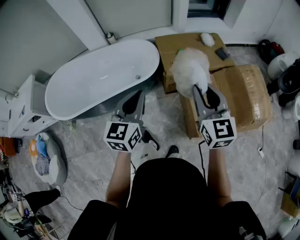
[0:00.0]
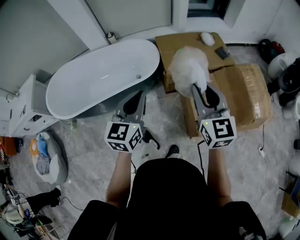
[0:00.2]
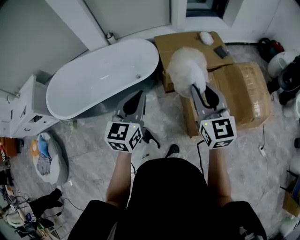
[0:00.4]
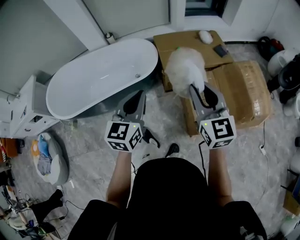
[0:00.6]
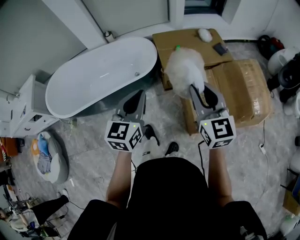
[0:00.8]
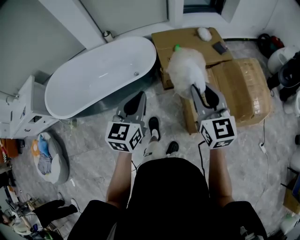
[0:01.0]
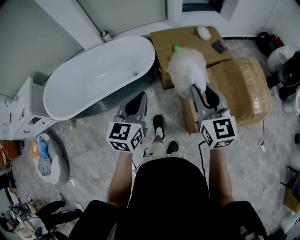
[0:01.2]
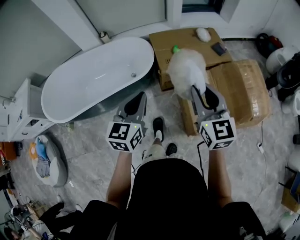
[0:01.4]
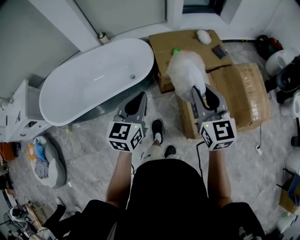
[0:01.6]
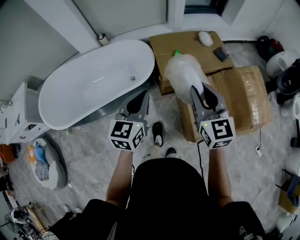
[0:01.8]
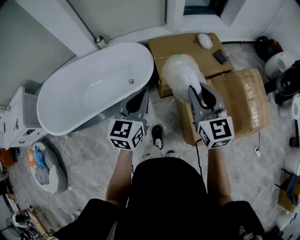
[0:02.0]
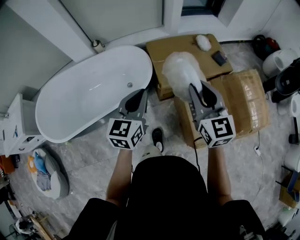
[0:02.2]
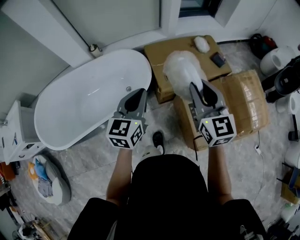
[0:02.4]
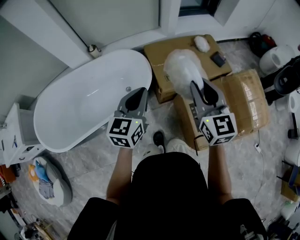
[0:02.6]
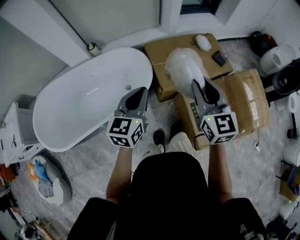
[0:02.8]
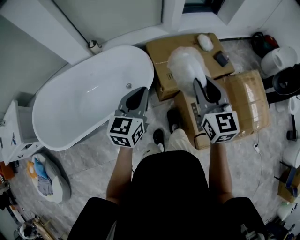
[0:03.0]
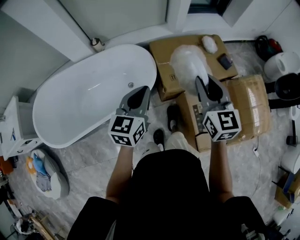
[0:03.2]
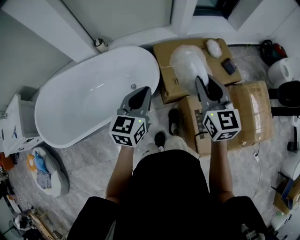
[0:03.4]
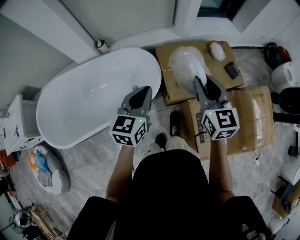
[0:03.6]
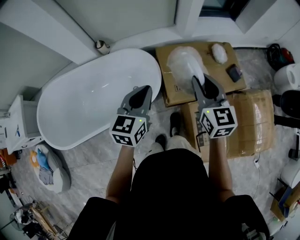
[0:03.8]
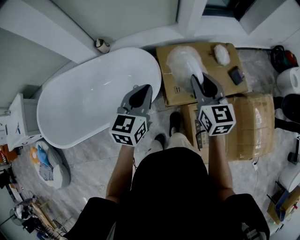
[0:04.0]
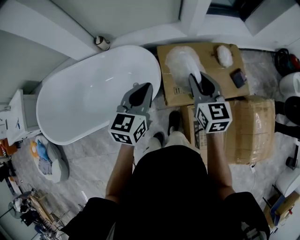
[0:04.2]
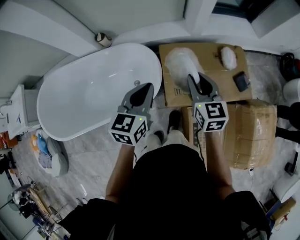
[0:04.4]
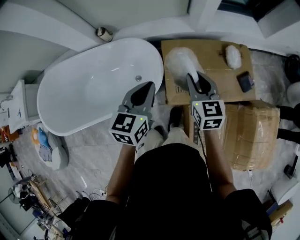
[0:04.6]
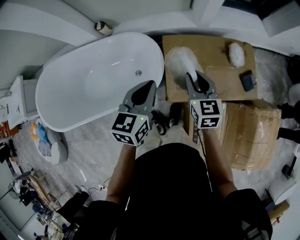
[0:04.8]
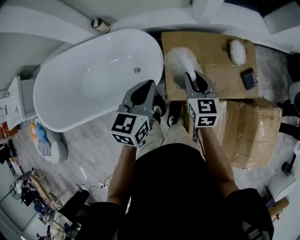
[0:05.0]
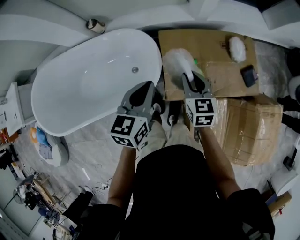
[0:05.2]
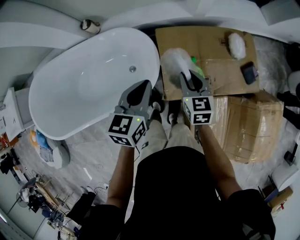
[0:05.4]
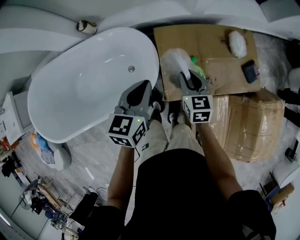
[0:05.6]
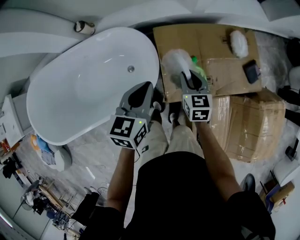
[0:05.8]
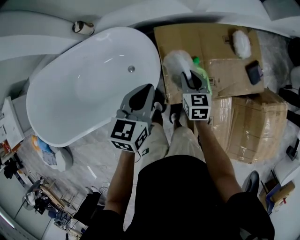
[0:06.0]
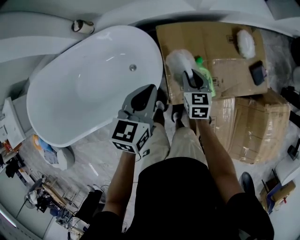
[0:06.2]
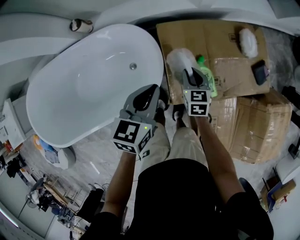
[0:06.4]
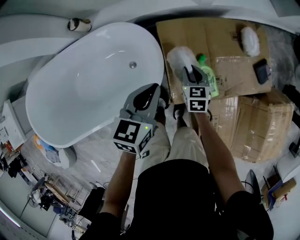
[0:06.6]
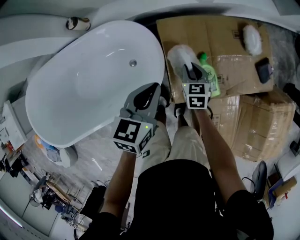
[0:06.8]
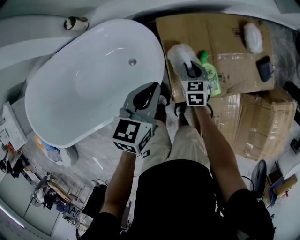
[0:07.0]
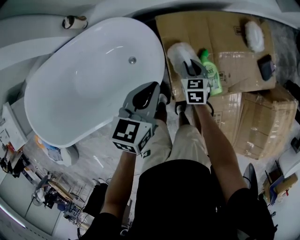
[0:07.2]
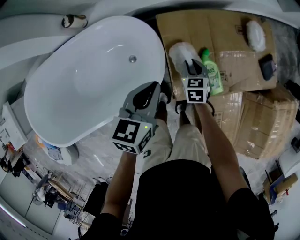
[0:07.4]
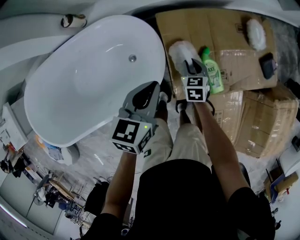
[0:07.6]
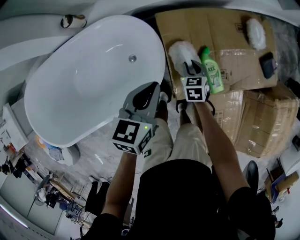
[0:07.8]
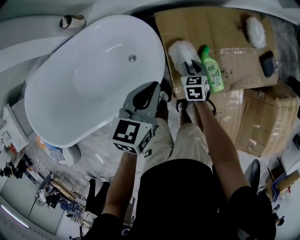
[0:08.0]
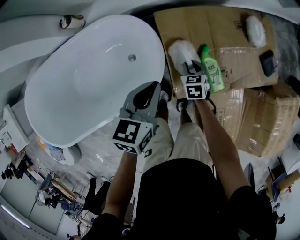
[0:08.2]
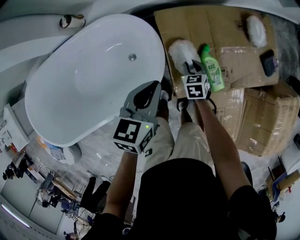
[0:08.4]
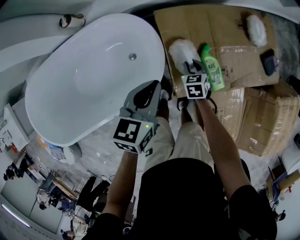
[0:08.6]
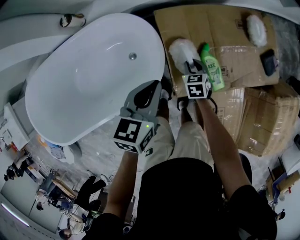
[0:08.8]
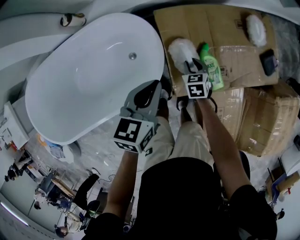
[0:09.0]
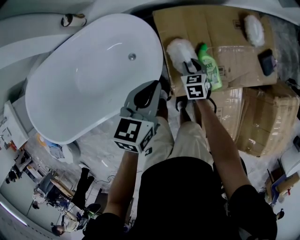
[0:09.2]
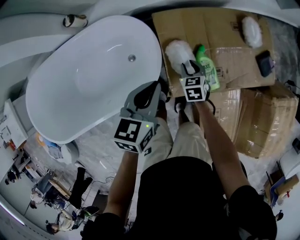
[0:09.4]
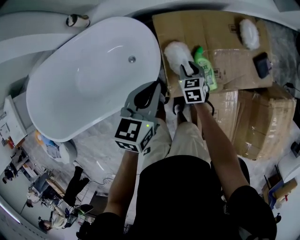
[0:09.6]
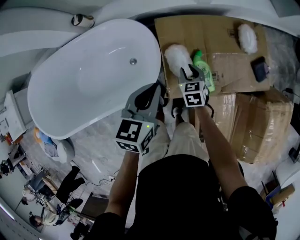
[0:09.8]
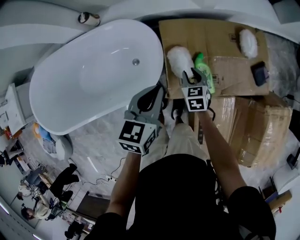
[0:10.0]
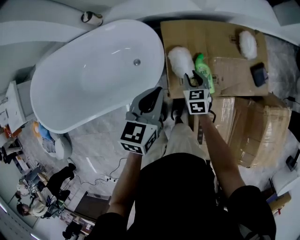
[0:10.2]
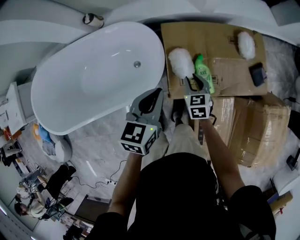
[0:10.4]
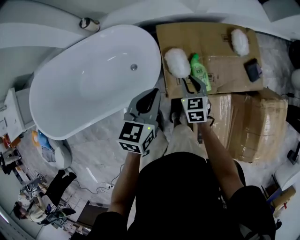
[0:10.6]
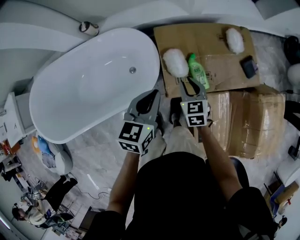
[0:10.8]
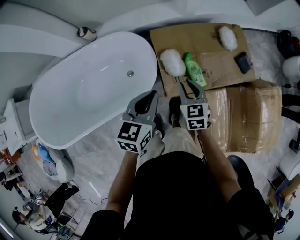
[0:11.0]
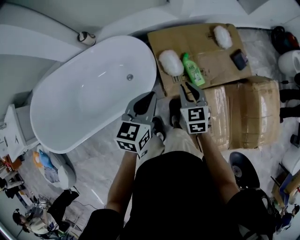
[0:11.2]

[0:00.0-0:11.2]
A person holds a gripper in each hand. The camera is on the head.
0:00.0 to 0:01.6: Both grippers travel together forward, approximately 5 cm.
0:01.6 to 0:03.2: The grippers both shift forward by approximately 20 cm.
0:03.2 to 0:04.8: The right gripper moves forward and downward, some 30 cm, and swivels some 20 degrees. The left gripper shifts approximately 20 cm forward.
0:04.8 to 0:06.4: The right gripper heads downward, covering approximately 25 cm. Meanwhile the left gripper goes some 15 cm downward and forward.
0:06.4 to 0:08.0: The right gripper goes about 10 cm downward.
0:08.0 to 0:09.6: The left gripper moves about 5 cm.
0:09.6 to 0:11.2: The right gripper heads upward and backward, covering some 25 cm. Meanwhile the left gripper goes about 15 cm backward and upward.

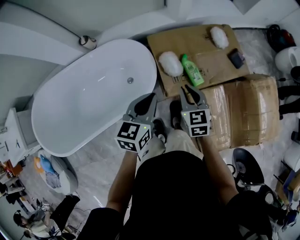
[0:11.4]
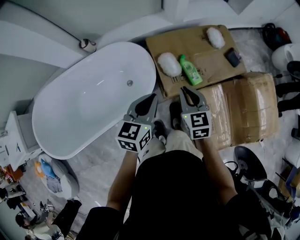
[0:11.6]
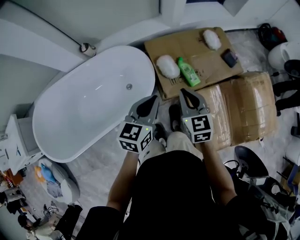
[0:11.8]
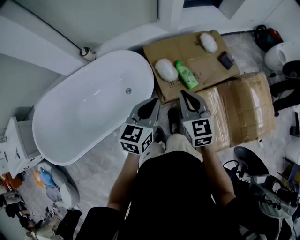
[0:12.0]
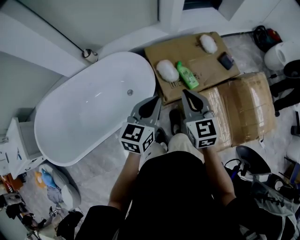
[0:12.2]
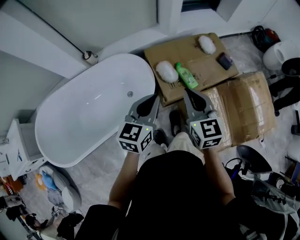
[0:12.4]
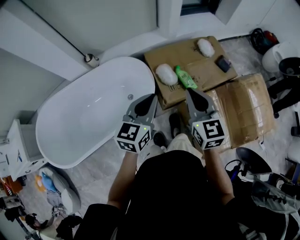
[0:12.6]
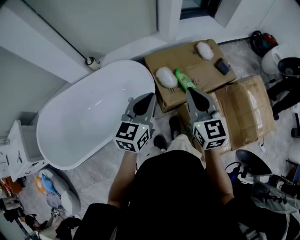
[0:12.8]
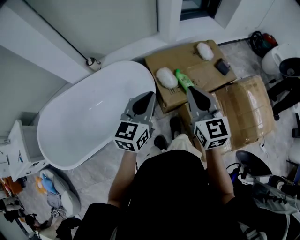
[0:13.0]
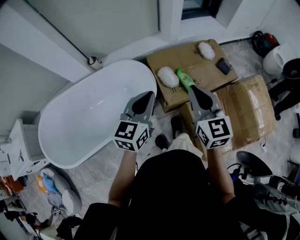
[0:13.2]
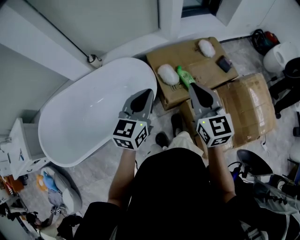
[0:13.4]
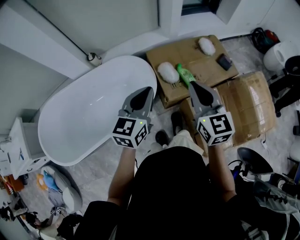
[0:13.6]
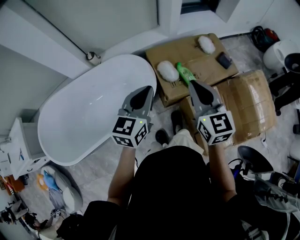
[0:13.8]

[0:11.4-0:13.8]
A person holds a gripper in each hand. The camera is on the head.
0:11.4 to 0:12.6: The left gripper heads upward and backward, covering about 10 cm; the right gripper is displaced upward and backward by roughly 20 cm.
0:12.6 to 0:13.8: There are only small adjustments of the grippers.

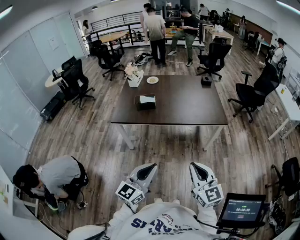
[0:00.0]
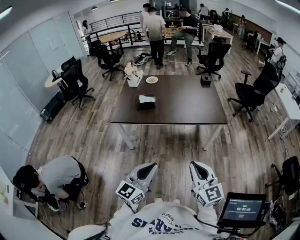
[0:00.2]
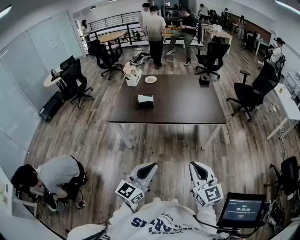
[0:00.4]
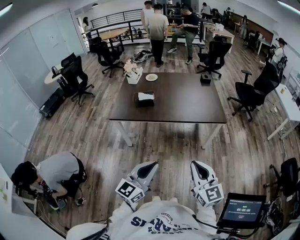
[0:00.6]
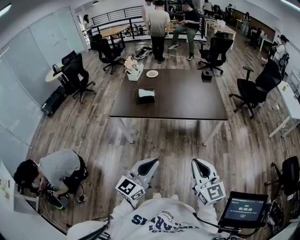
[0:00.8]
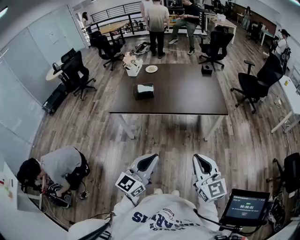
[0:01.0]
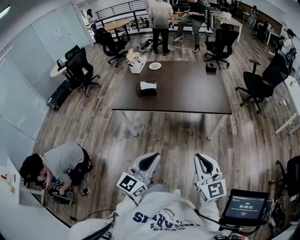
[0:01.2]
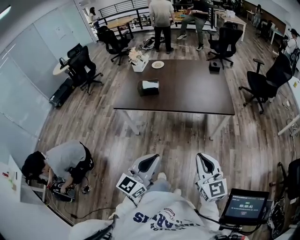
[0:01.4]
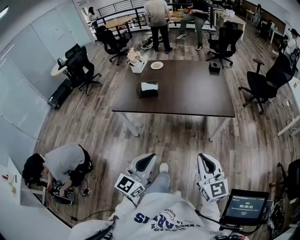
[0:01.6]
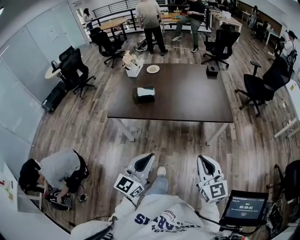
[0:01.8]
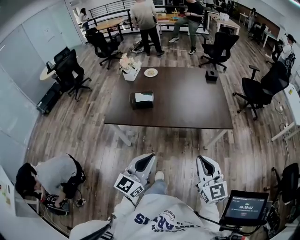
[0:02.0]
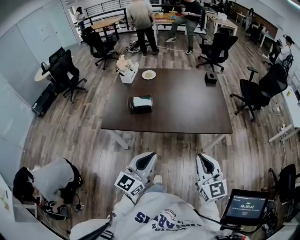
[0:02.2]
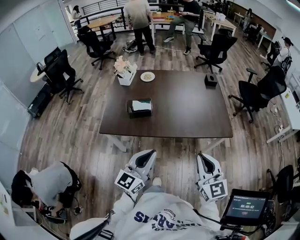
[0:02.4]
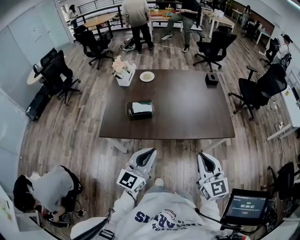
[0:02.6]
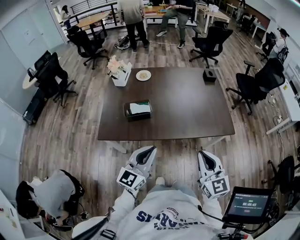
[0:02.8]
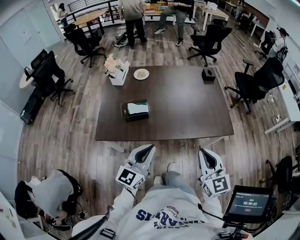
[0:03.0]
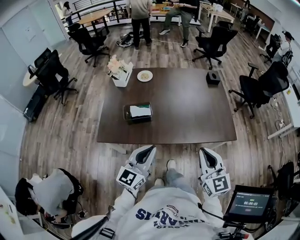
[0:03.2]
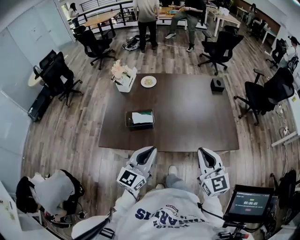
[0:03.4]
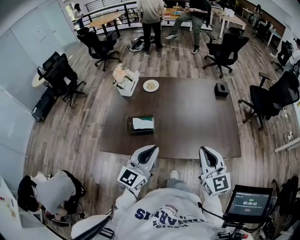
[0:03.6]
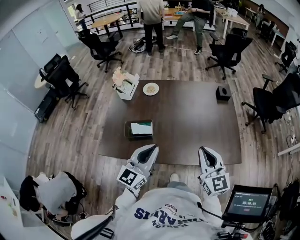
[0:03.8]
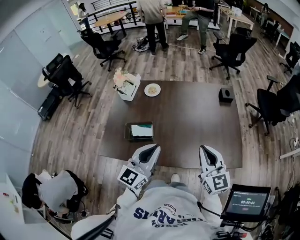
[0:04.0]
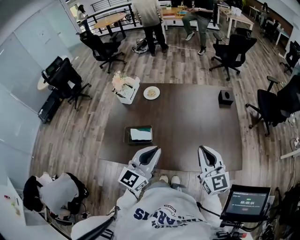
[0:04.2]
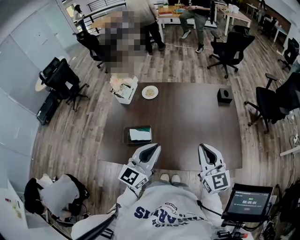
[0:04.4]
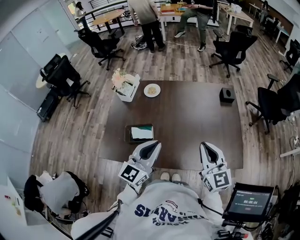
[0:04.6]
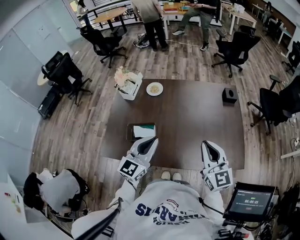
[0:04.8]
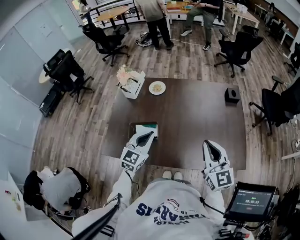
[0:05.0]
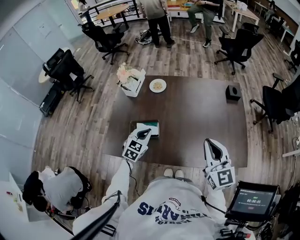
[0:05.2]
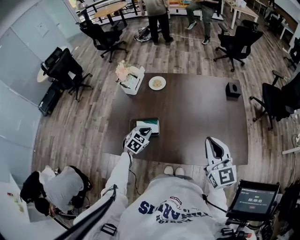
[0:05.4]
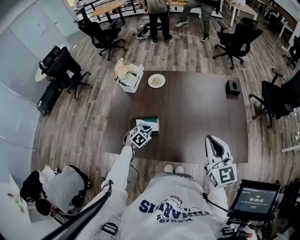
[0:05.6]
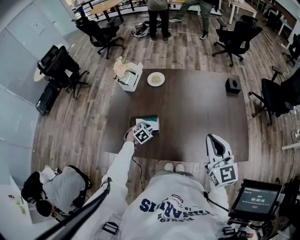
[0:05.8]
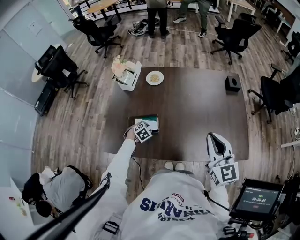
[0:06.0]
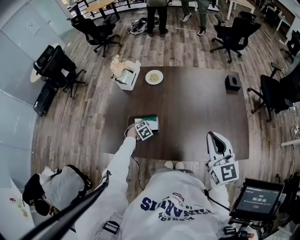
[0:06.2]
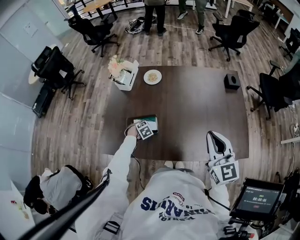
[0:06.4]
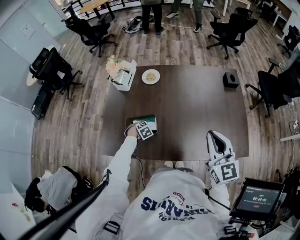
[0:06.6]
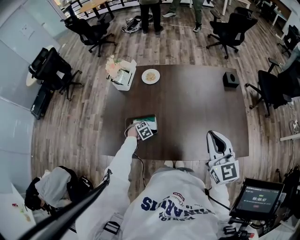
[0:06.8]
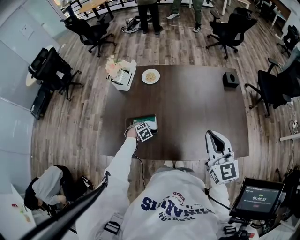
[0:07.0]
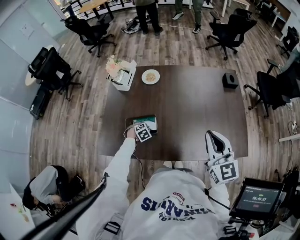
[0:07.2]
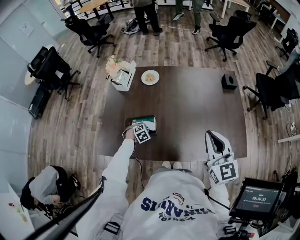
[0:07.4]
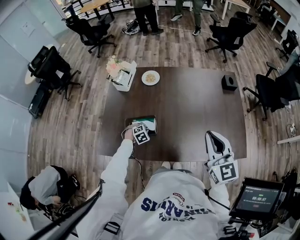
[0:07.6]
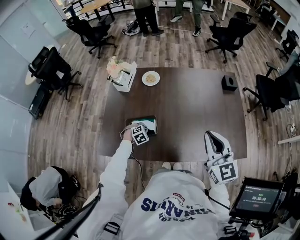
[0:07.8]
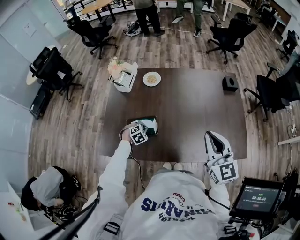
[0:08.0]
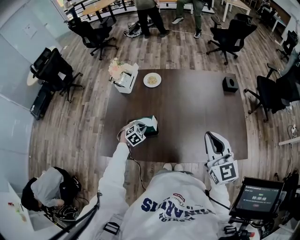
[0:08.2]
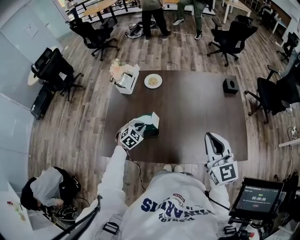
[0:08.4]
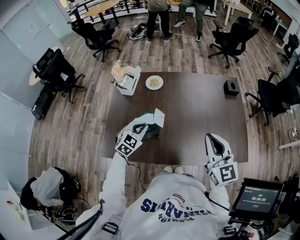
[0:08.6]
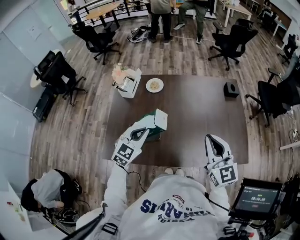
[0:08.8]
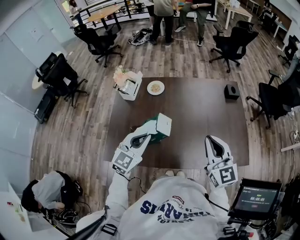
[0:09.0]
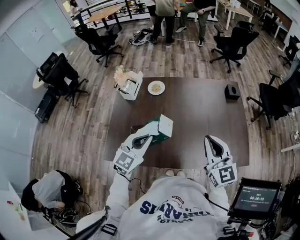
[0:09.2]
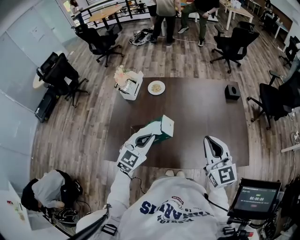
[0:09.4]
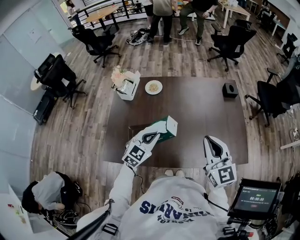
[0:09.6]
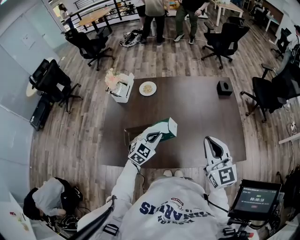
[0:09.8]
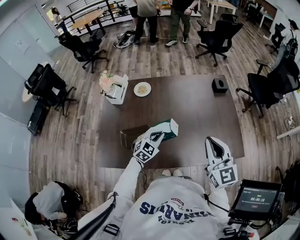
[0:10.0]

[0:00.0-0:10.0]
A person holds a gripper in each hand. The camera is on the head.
0:00.0 to 0:01.4: Both grippers travel together to the right, some 5 cm.
0:01.4 to 0:02.8: The left gripper heads forward and to the left, covering approximately 35 cm, while the right gripper shifts some 30 cm forward.
0:02.8 to 0:04.2: The two grippers go some 25 cm forward.
0:04.2 to 0:05.8: The left gripper moves downward and to the left, about 40 cm, and points its fingers some 70 degrees further downward.
0:05.8 to 0:07.2: The left gripper heads downward, covering about 5 cm.
0:07.2 to 0:08.6: The left gripper is displaced upward by roughly 25 cm, and angles its fingers upward, by roughly 40 degrees.
0:08.6 to 0:10.0: The left gripper is displaced to the right by roughly 10 cm, and goes upward and returns, some 10 cm each way.
